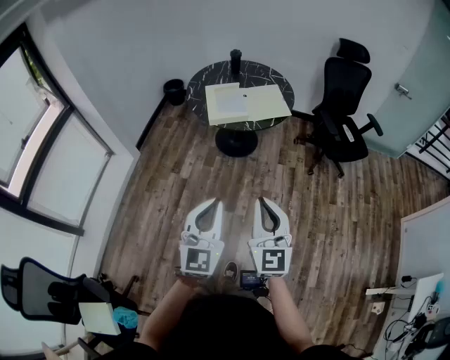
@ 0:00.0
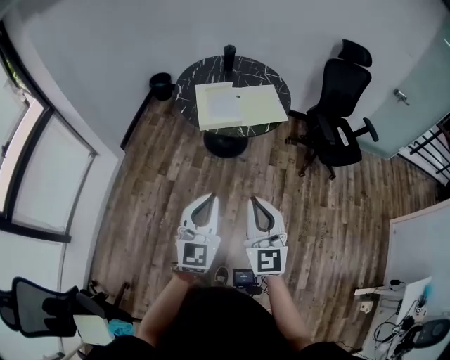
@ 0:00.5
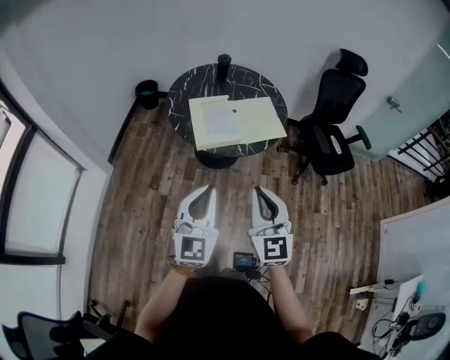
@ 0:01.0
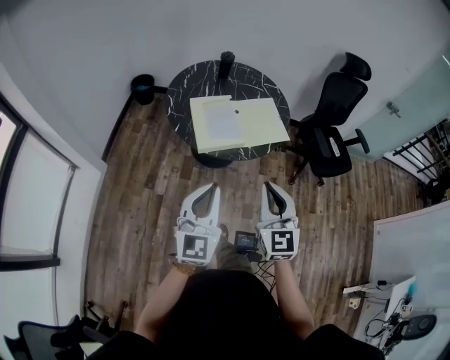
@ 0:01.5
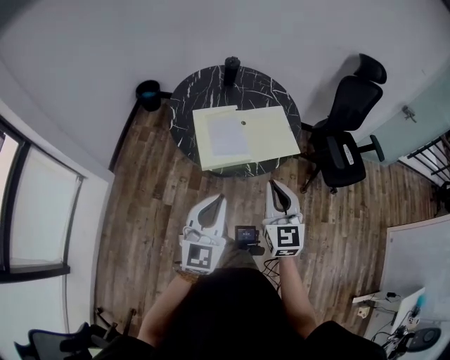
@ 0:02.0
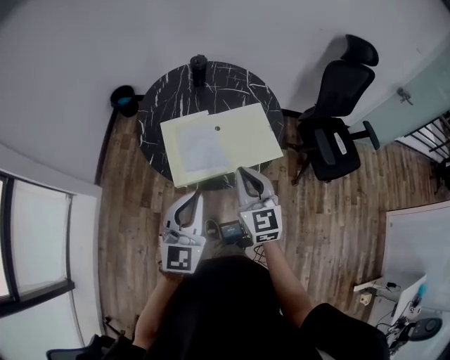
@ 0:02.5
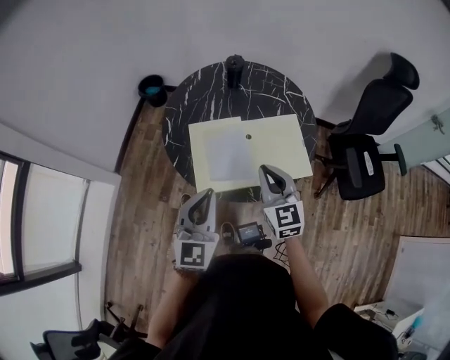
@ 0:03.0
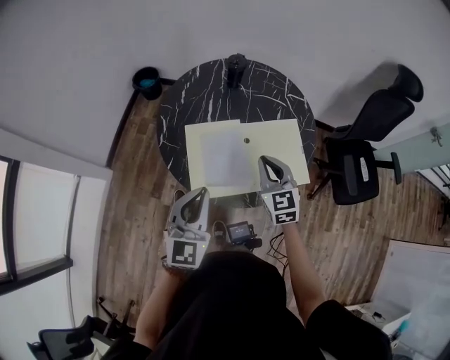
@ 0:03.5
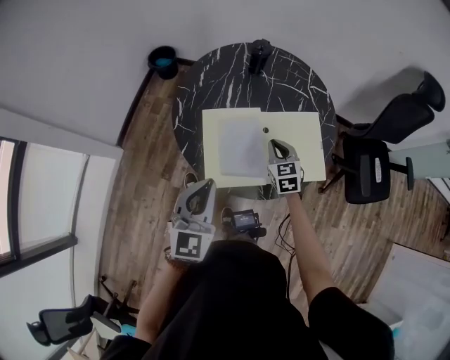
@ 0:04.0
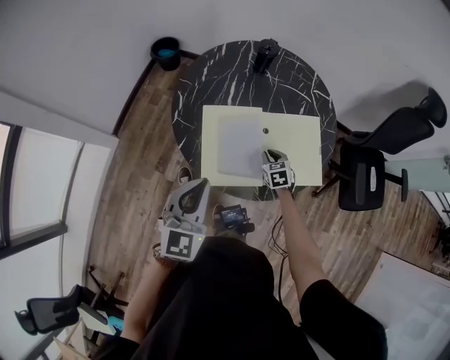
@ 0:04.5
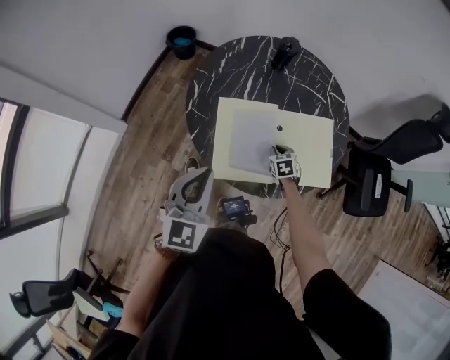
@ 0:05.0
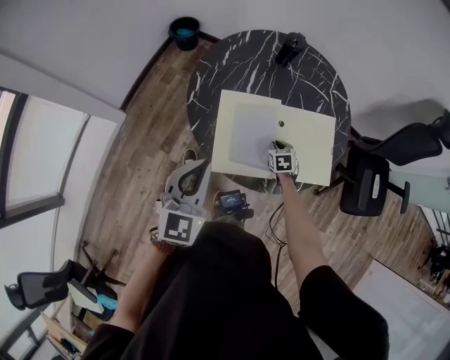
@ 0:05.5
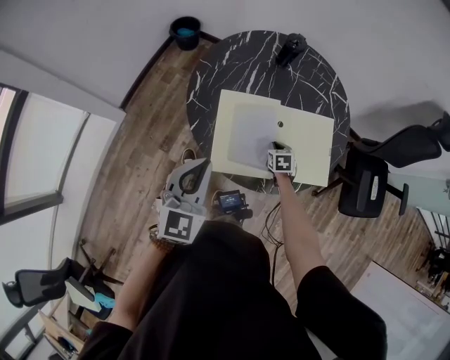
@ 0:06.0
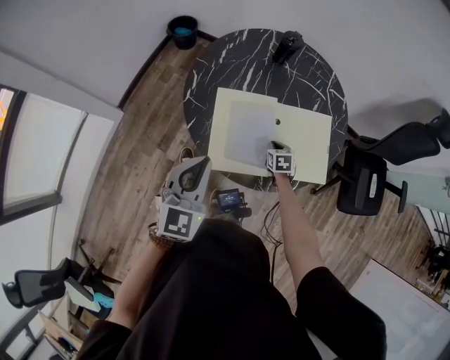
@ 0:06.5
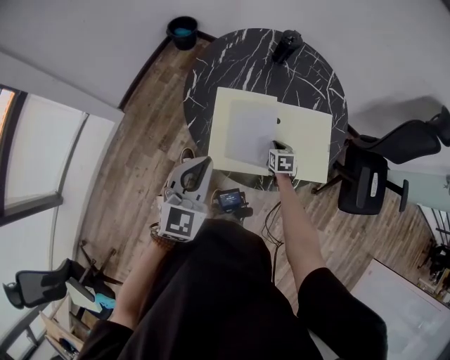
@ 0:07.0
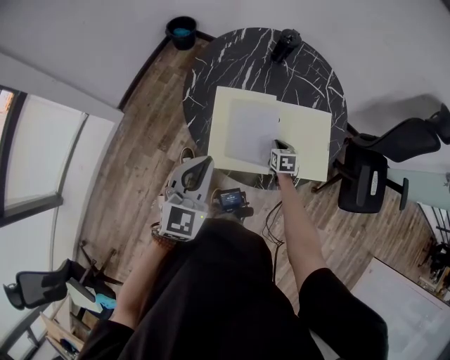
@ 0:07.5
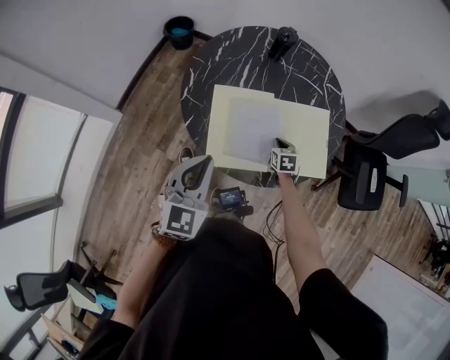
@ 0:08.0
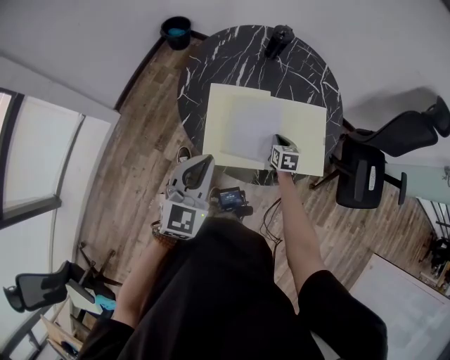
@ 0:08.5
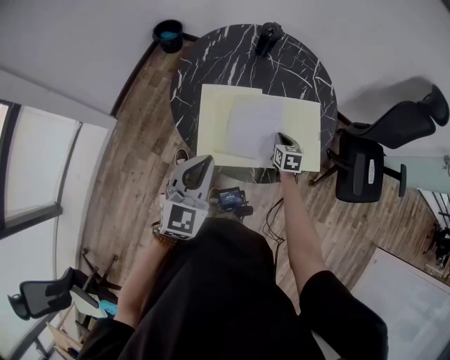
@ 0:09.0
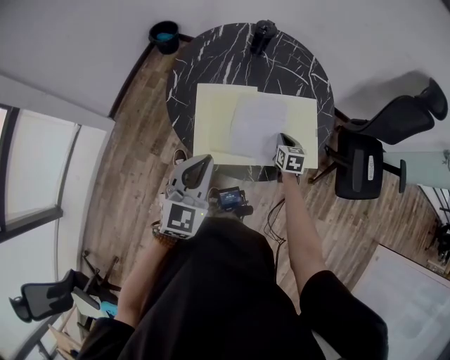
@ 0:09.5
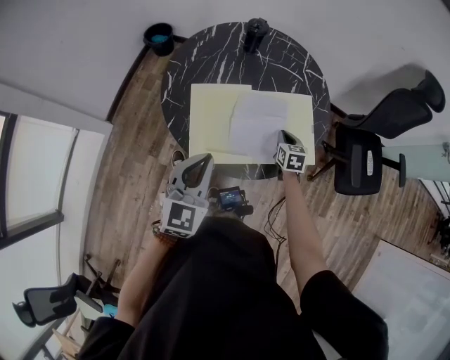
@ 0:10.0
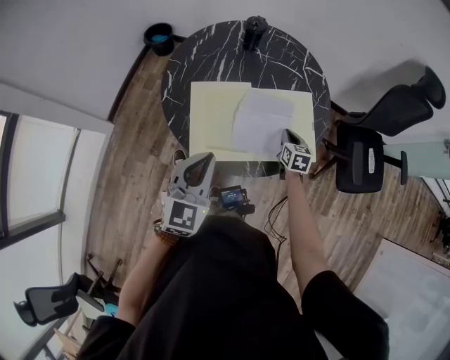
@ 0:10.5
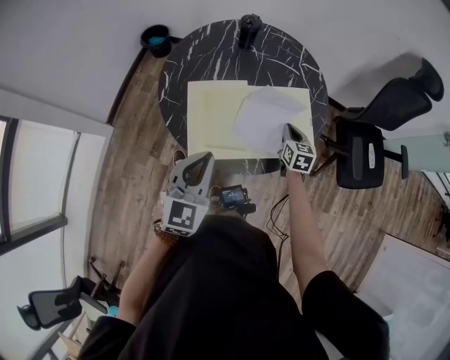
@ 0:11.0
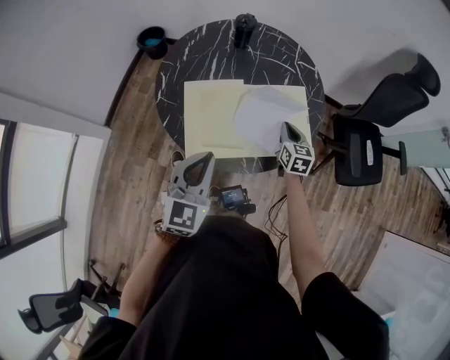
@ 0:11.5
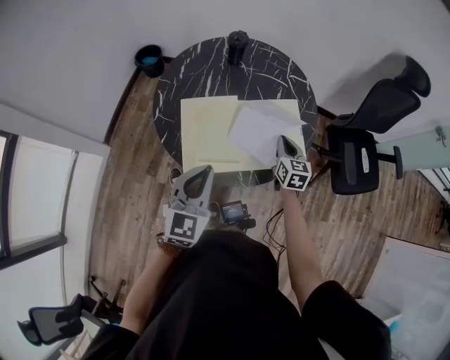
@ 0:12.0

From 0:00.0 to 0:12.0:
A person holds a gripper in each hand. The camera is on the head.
From 0:00.0 to 0:02.0: Both grippers are carried forward, approximately 40 cm.
From 0:02.0 to 0:04.0: The right gripper is displaced forward and downward by approximately 50 cm, and swivels roughly 30 degrees, while the left gripper travels forward by roughly 25 cm.
From 0:04.0 to 0:06.0: The right gripper travels downward by some 15 cm, and rotates roughly 30 degrees, while the left gripper ends up about 5 cm from where it was.
From 0:06.0 to 0:08.0: The grippers make only small movements.
From 0:08.0 to 0:10.0: The right gripper goes roughly 10 cm to the right and upward. Meanwhile the left gripper travels to the right by about 5 cm.
From 0:10.0 to 0:12.0: The right gripper heads upward, covering about 10 cm.

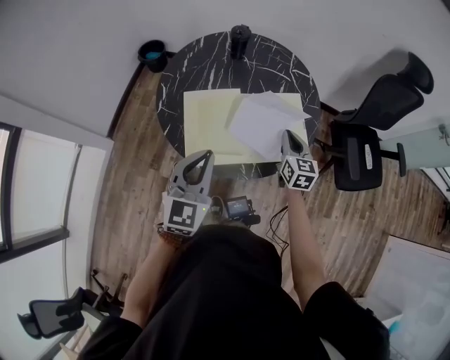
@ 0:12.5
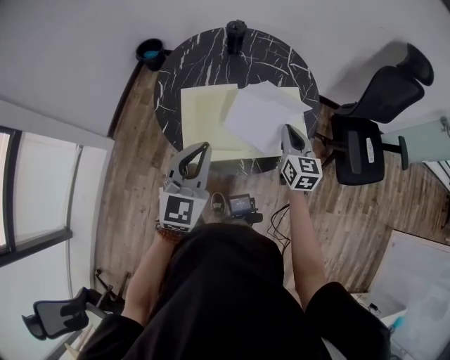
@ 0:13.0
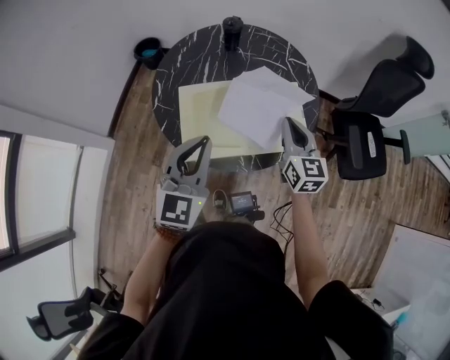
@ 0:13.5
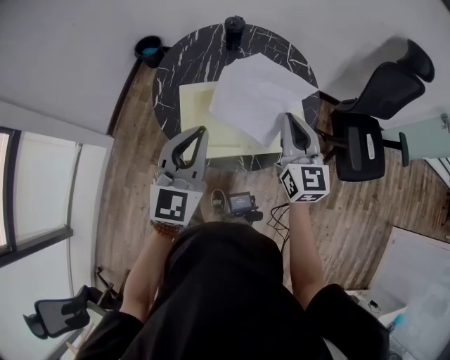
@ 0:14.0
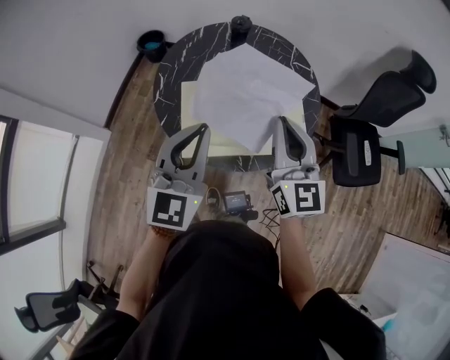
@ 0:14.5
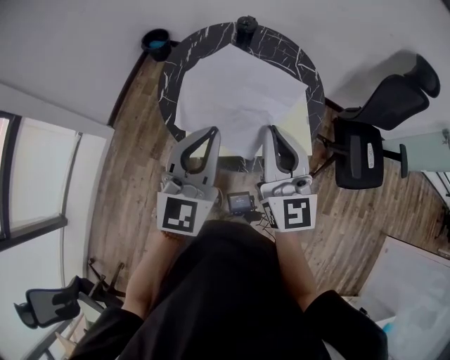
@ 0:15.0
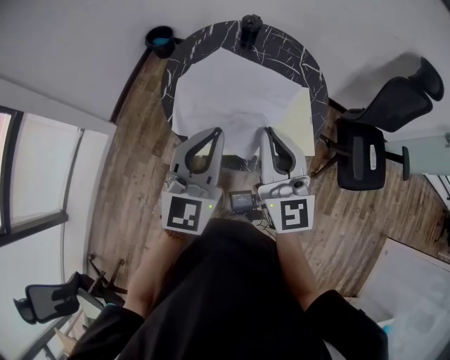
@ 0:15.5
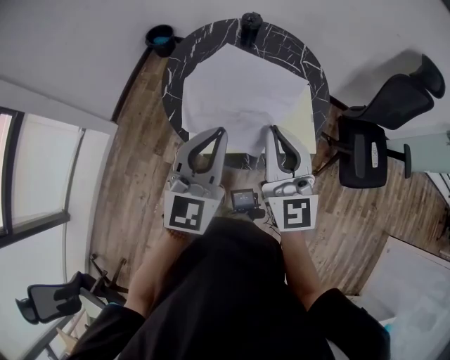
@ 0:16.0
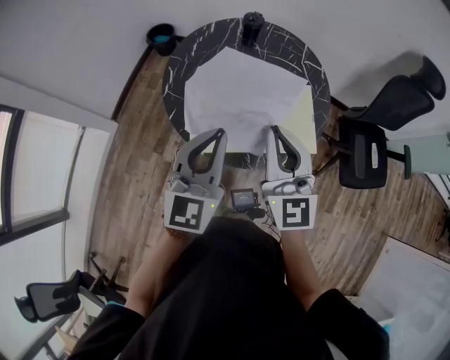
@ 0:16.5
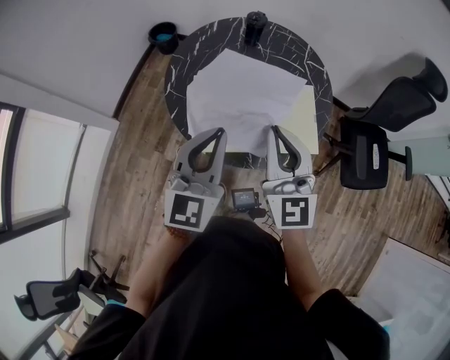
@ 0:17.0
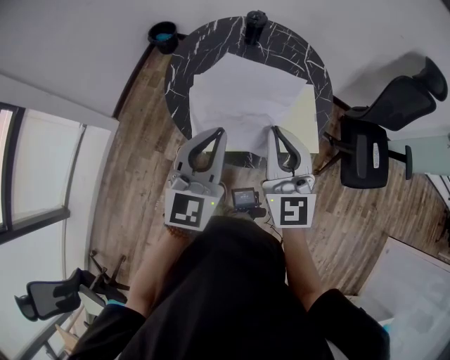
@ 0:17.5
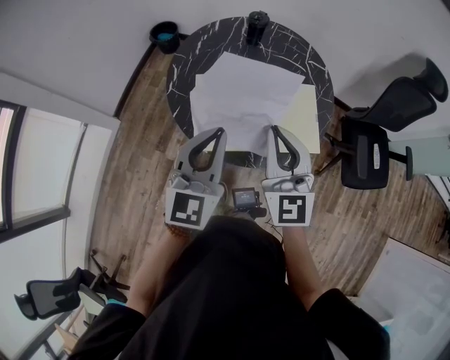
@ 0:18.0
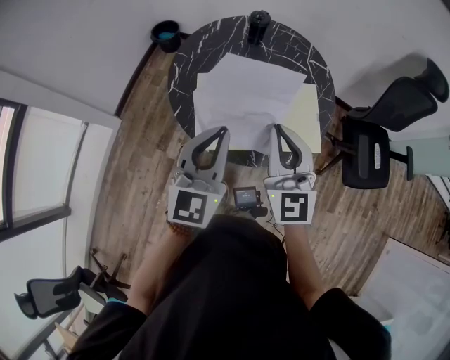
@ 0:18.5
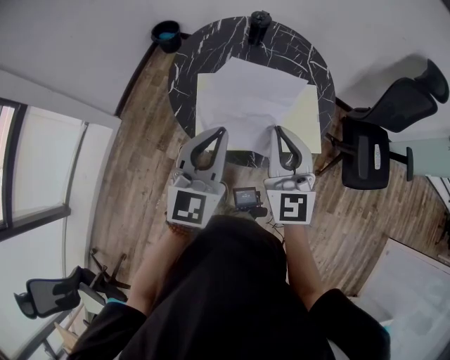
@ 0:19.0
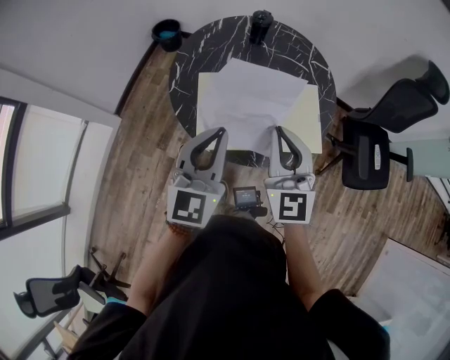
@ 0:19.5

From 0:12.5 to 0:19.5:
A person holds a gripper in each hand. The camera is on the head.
From 0:12.5 to 0:14.5: The right gripper shifts roughly 20 cm upward, and swivels some 30 degrees, while the left gripper travels upward by some 10 cm.
From 0:14.5 to 0:16.0: The right gripper moves some 5 cm.
From 0:16.0 to 0:19.5: The grippers stay close to where they were, moving slightly.

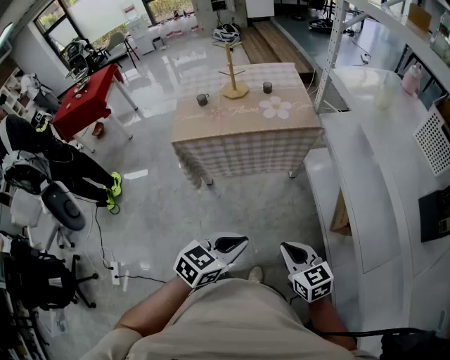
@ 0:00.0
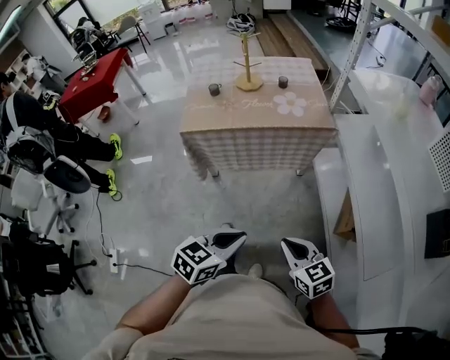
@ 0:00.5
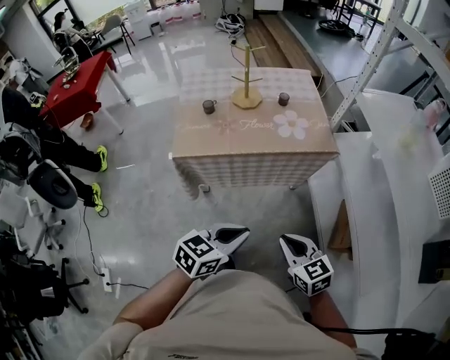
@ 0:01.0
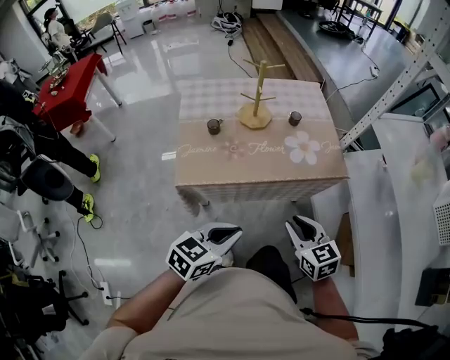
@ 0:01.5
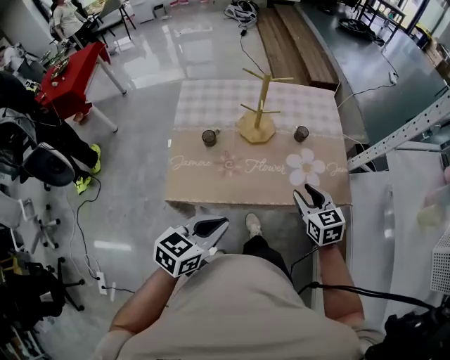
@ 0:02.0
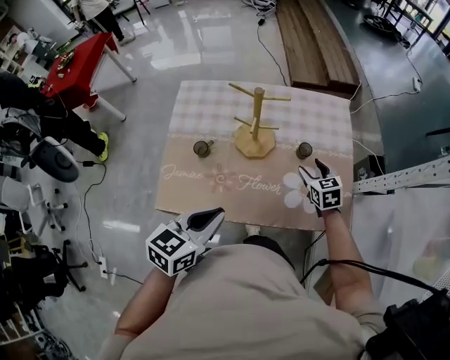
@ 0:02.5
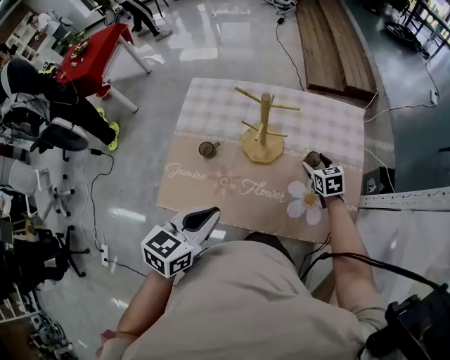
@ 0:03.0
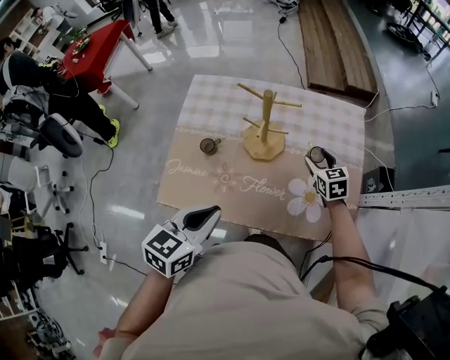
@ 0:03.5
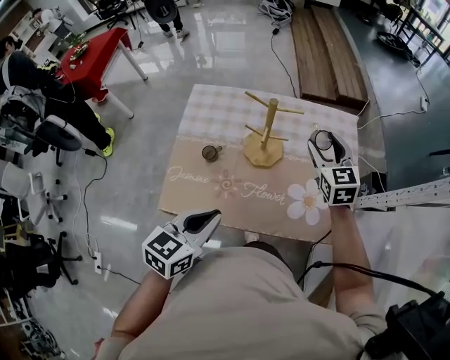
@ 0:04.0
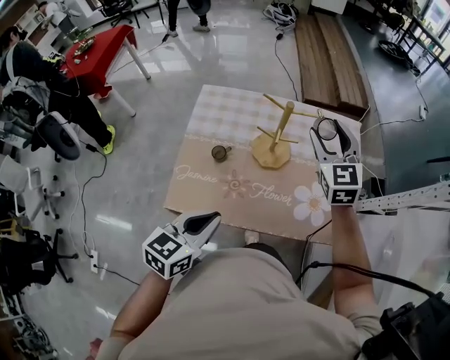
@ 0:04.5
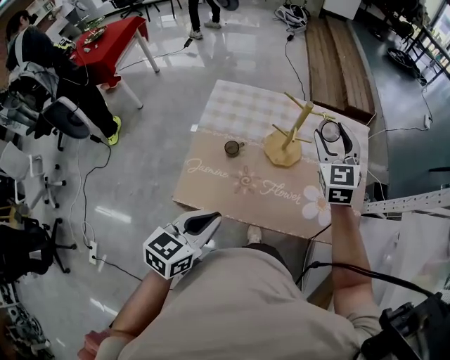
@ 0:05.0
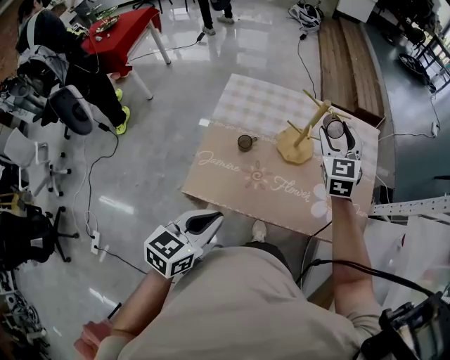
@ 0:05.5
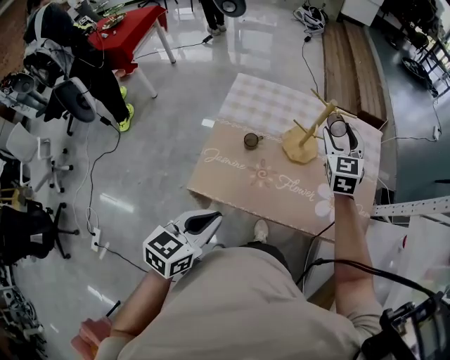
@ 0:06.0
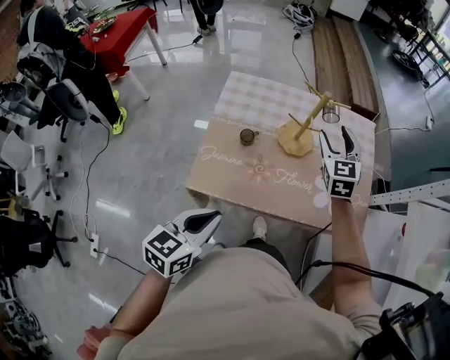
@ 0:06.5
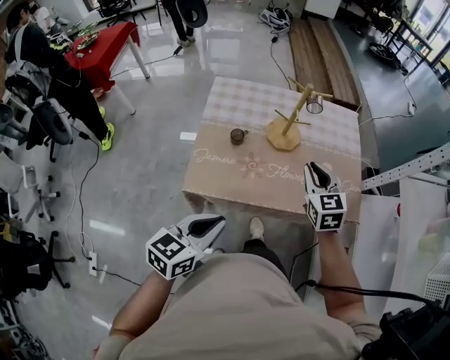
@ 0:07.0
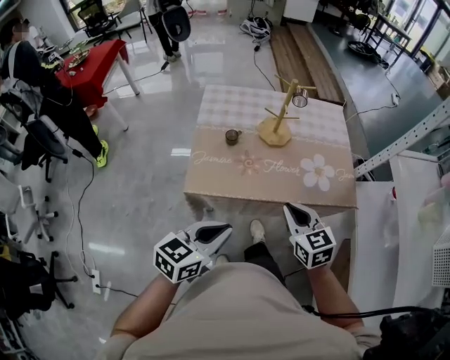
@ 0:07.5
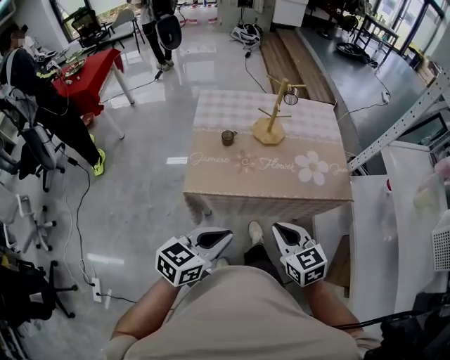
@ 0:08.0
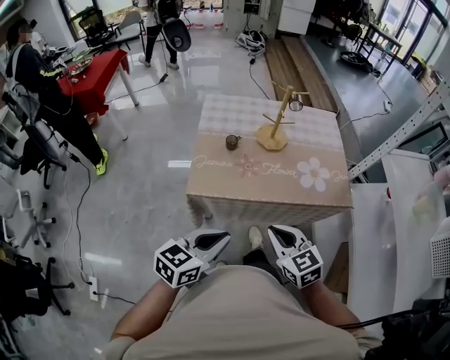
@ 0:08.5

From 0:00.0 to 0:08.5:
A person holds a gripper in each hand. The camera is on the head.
From 0:00.0 to 0:02.0: The pair of grippers is taken forward, roughly 50 cm. The right gripper opens up.
From 0:02.0 to 0:04.0: The left gripper heads forward, covering roughly 10 cm. The right gripper moves forward, approximately 25 cm.
From 0:04.0 to 0:06.5: The left gripper travels backward and to the left by about 15 cm, while the right gripper goes approximately 10 cm to the left and backward.
From 0:06.5 to 0:08.5: The right gripper goes approximately 40 cm backward, rotates some 30 degrees, and closes. Meanwhile the left gripper heads backward, covering about 15 cm.
